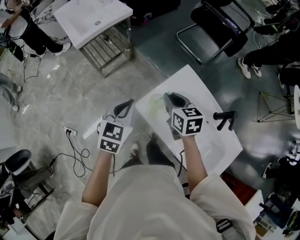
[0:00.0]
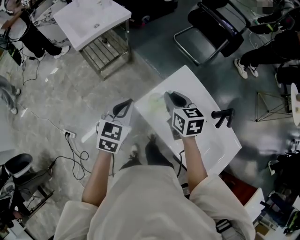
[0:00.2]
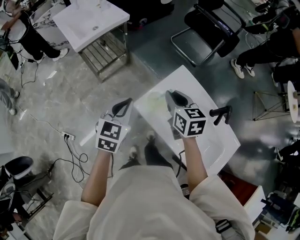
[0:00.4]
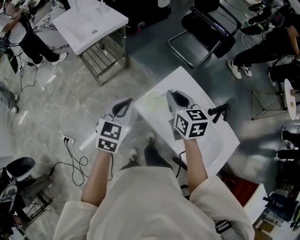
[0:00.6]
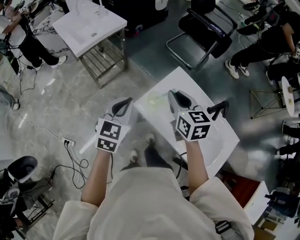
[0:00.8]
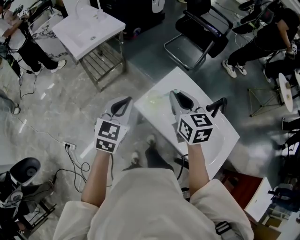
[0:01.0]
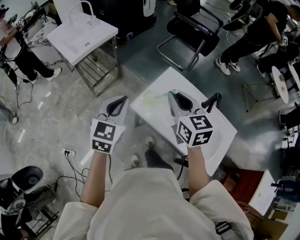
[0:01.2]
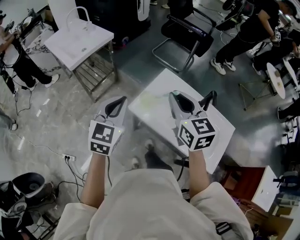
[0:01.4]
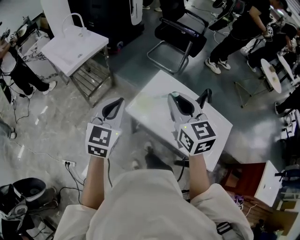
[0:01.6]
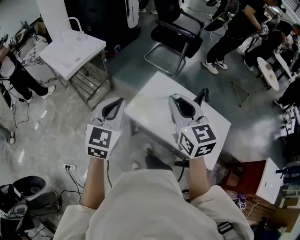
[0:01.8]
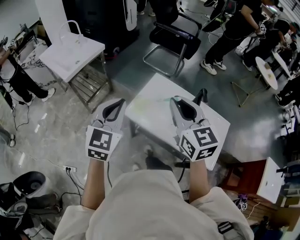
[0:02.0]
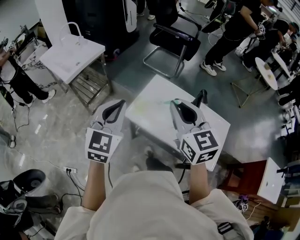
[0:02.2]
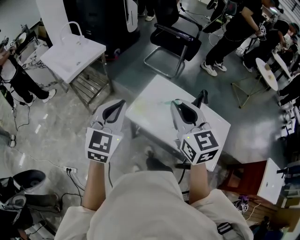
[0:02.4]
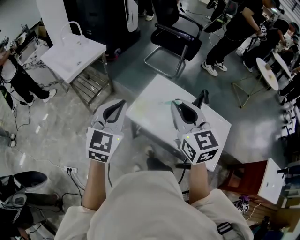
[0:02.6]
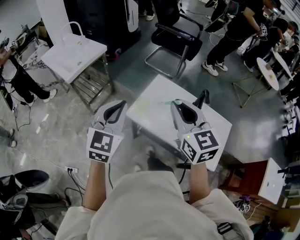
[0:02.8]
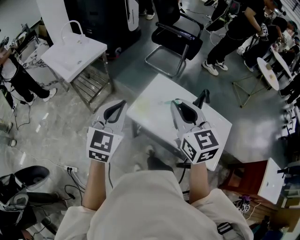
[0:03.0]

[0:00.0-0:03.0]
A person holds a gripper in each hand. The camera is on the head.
0:00.0 to 0:01.6: The two grippers go some 25 cm upward and backward. The right gripper changes its angle by approximately 30 degrees. The left gripper swivels about 20 degrees.
0:01.6 to 0:03.0: The grippers make only small movements.

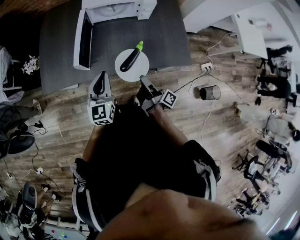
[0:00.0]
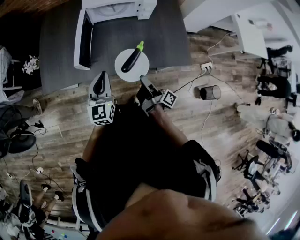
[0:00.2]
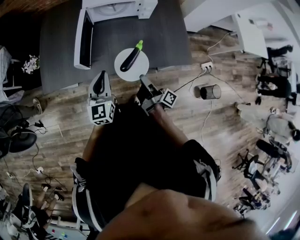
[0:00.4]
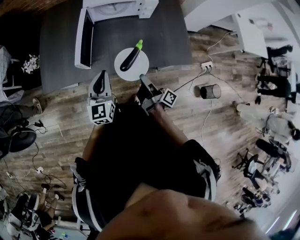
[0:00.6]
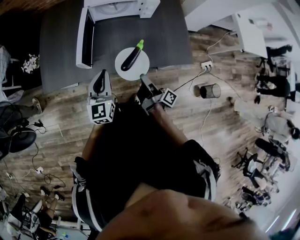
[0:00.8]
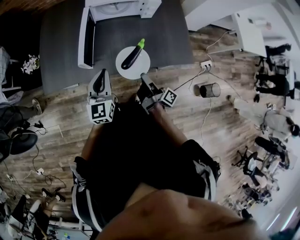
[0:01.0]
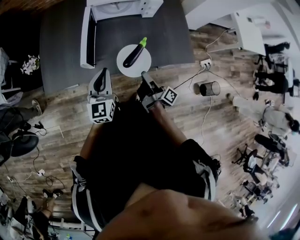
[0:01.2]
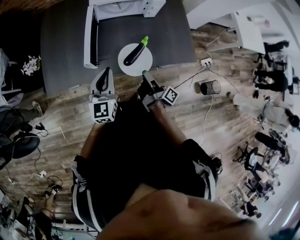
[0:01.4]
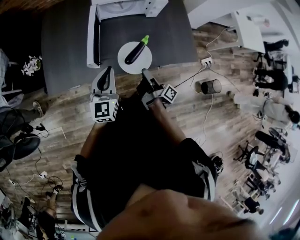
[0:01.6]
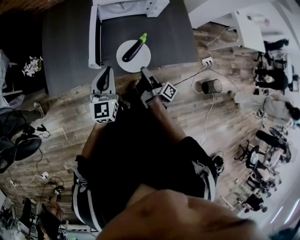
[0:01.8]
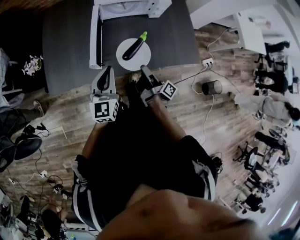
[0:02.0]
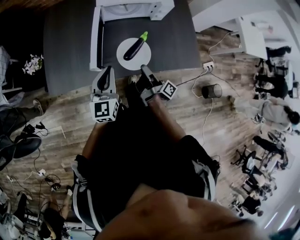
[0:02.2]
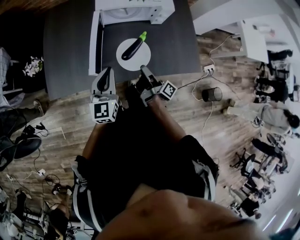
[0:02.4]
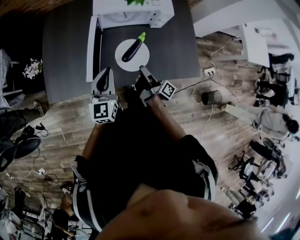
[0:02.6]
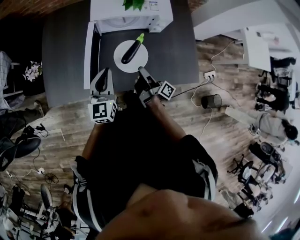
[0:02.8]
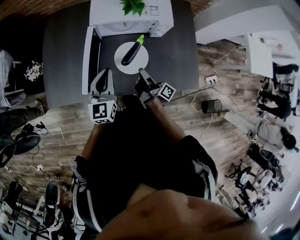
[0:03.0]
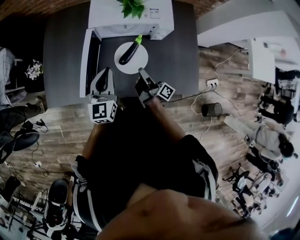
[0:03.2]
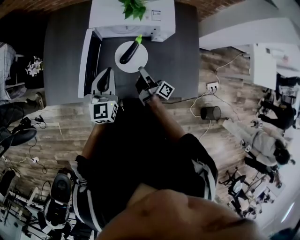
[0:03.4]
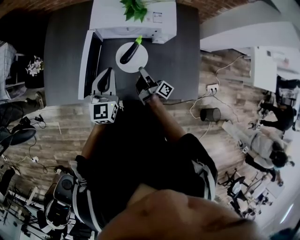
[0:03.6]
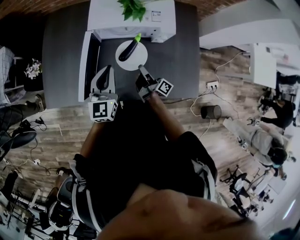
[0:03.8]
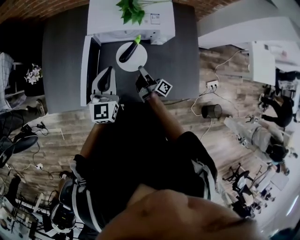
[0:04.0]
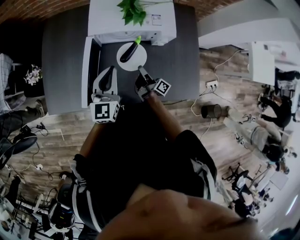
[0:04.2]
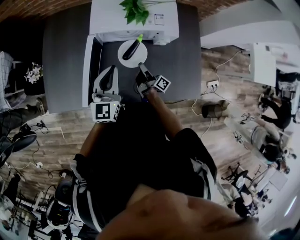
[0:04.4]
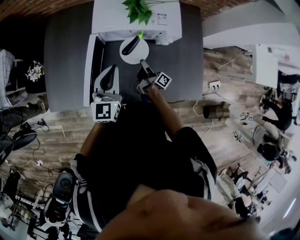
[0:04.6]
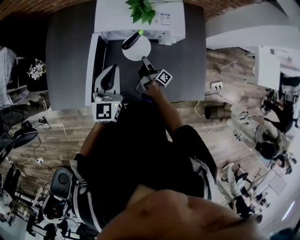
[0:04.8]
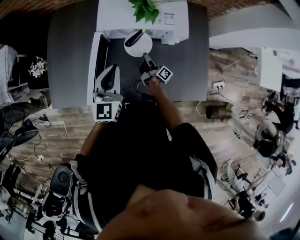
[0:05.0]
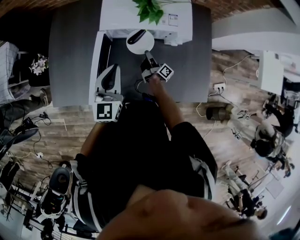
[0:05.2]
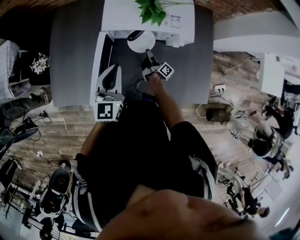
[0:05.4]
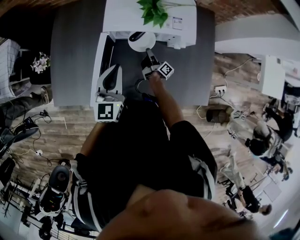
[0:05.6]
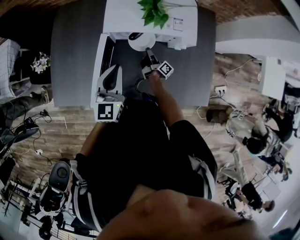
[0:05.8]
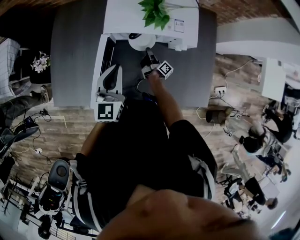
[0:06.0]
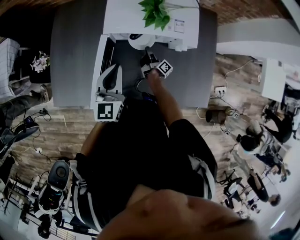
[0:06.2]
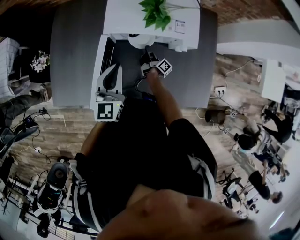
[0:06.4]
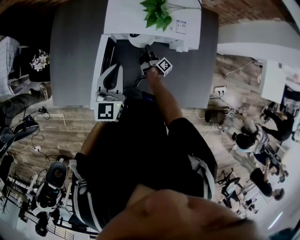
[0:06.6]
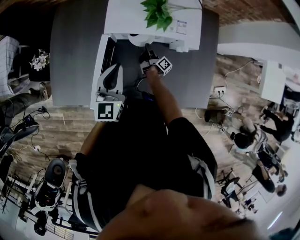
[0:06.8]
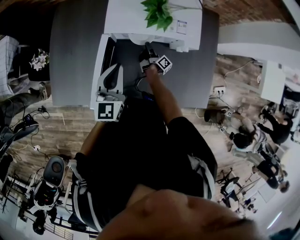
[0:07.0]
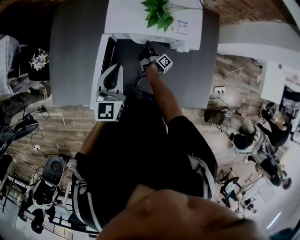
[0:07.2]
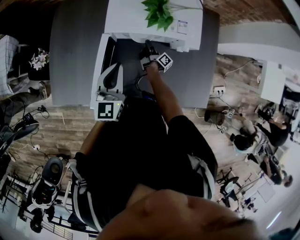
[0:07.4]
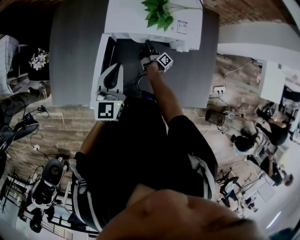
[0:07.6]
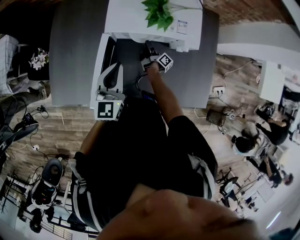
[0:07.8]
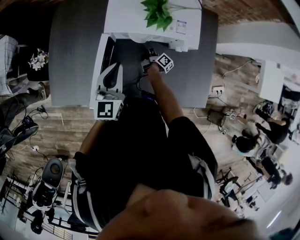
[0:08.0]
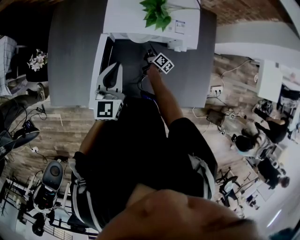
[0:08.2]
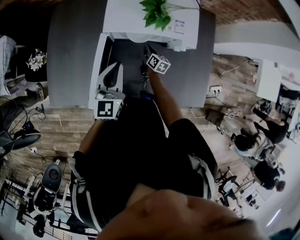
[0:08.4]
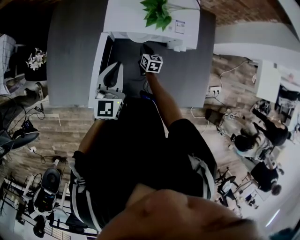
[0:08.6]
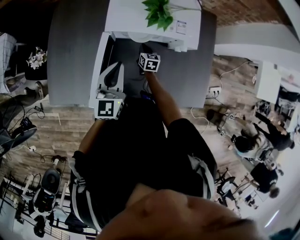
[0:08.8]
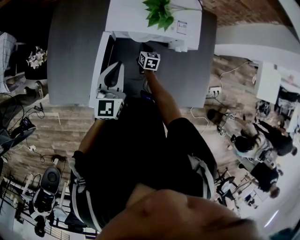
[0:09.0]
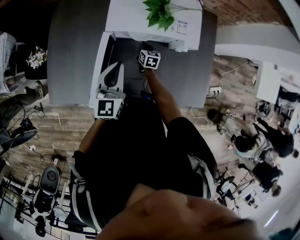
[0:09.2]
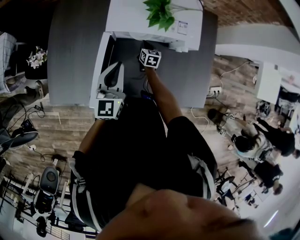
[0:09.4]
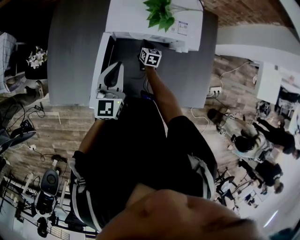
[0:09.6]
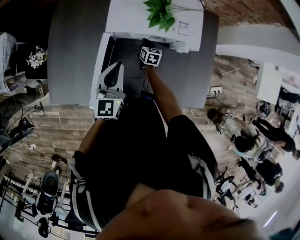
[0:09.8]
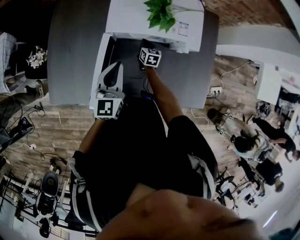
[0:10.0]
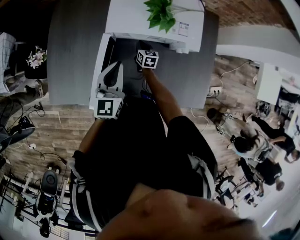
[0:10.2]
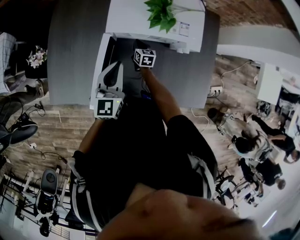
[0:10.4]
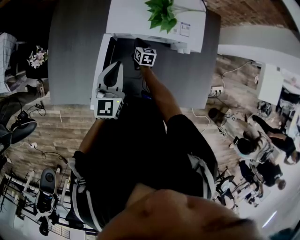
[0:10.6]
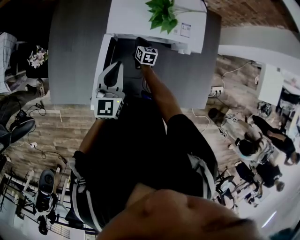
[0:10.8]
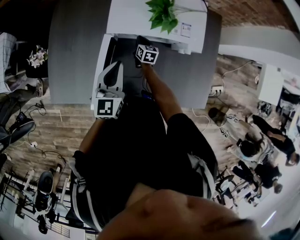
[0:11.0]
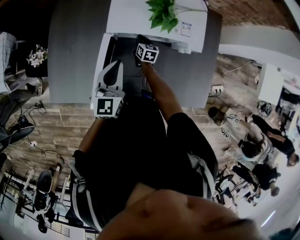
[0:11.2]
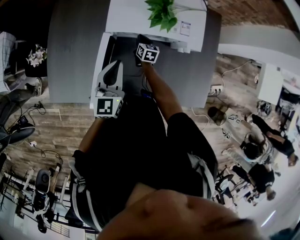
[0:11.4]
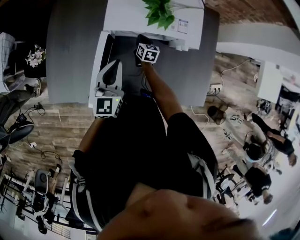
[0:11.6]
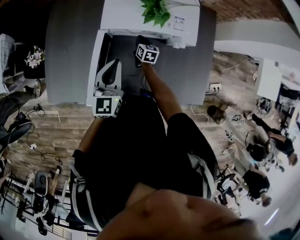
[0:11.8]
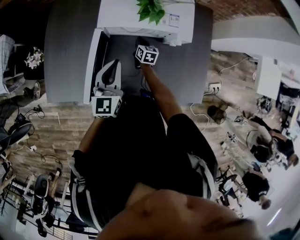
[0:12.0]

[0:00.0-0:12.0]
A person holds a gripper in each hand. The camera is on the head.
0:00.0 to 0:01.6: The two grippers go about 5 cm to the left.
0:01.6 to 0:03.0: Both grippers move forward, some 15 cm.
0:03.0 to 0:04.4: The right gripper is displaced downward and forward by roughly 15 cm. The left gripper is displaced forward by about 5 cm.
0:04.4 to 0:06.0: The right gripper heads forward and downward, covering about 15 cm. Meanwhile the left gripper shifts by approximately 5 cm.
0:06.0 to 0:07.6: There are only small adjustments of the grippers.
0:07.6 to 0:09.0: The right gripper rolls counterclockwise, seen from behind, by some 70 degrees.
0:09.0 to 0:10.4: The grippers move only a little.
0:10.4 to 0:12.0: The right gripper travels to the right by some 5 cm.

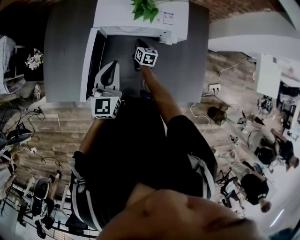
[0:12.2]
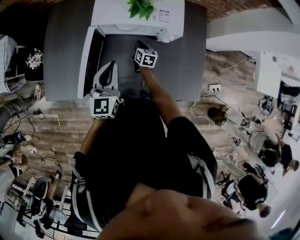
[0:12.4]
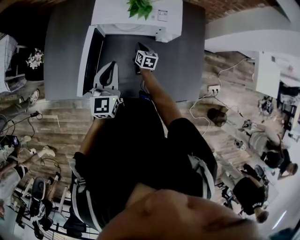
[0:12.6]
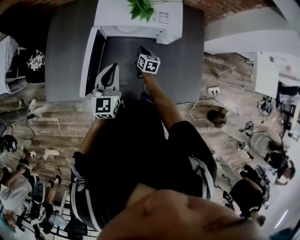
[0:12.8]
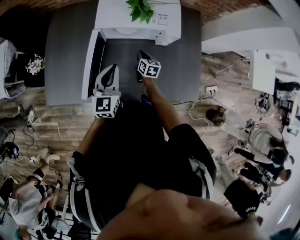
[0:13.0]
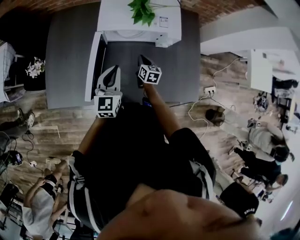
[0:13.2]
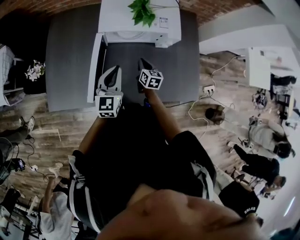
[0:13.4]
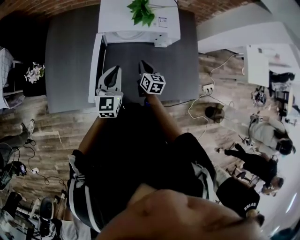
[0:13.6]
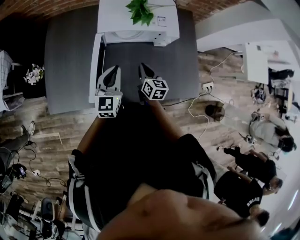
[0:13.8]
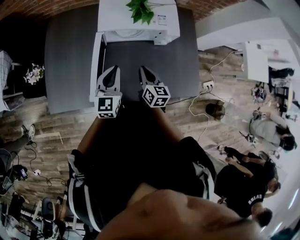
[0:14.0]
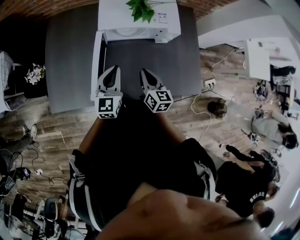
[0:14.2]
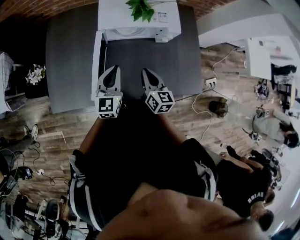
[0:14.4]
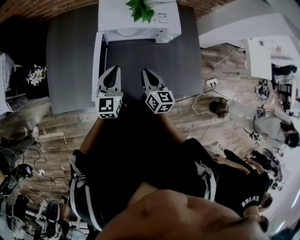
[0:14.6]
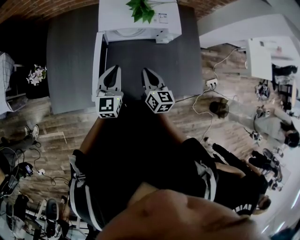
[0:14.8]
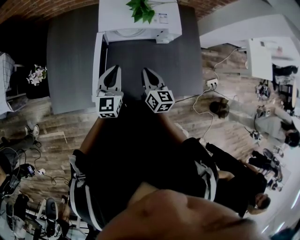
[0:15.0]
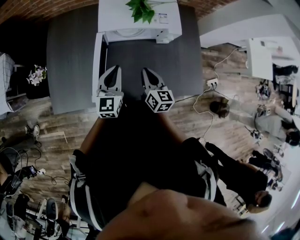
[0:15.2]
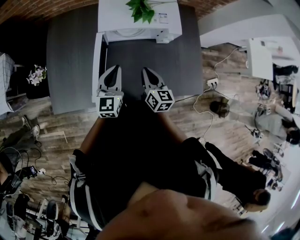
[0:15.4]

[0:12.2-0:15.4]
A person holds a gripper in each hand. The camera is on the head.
0:12.2 to 0:13.8: The right gripper goes some 25 cm upward and backward.
0:13.8 to 0:15.4: The right gripper moves upward, roughly 5 cm.

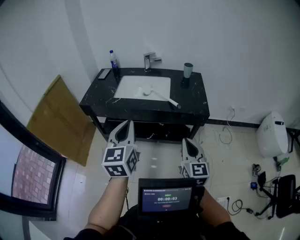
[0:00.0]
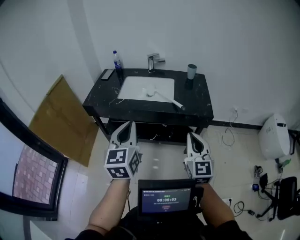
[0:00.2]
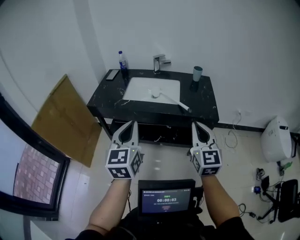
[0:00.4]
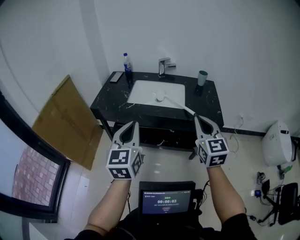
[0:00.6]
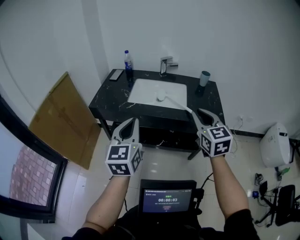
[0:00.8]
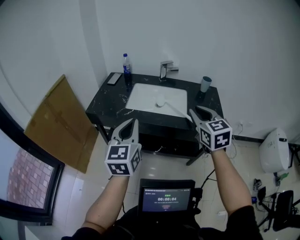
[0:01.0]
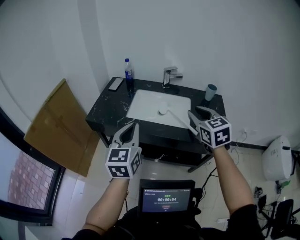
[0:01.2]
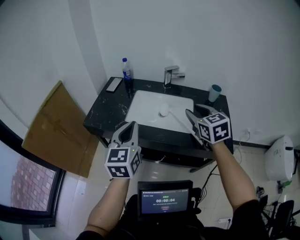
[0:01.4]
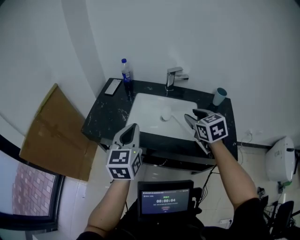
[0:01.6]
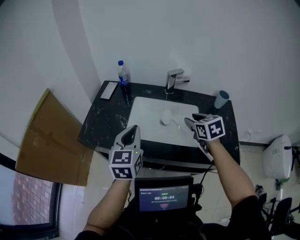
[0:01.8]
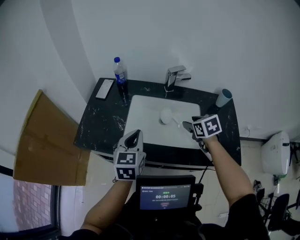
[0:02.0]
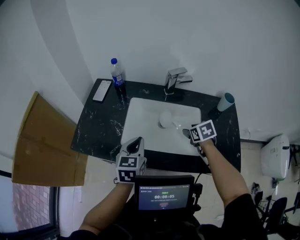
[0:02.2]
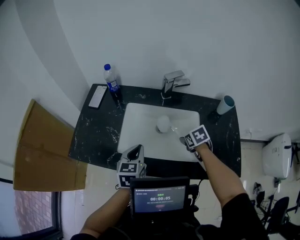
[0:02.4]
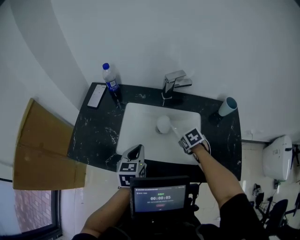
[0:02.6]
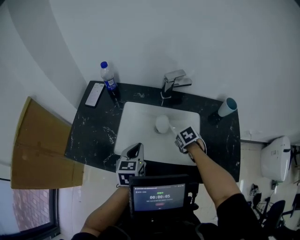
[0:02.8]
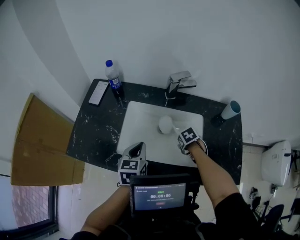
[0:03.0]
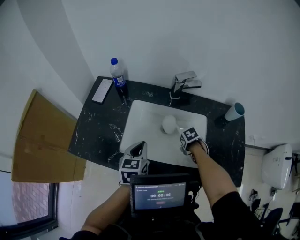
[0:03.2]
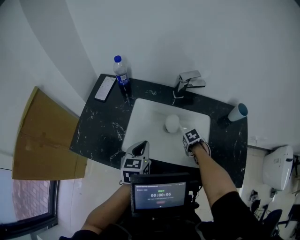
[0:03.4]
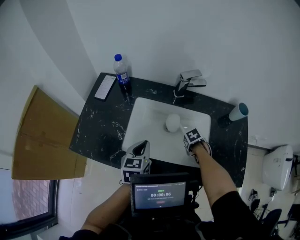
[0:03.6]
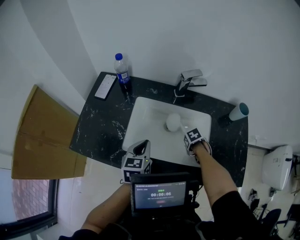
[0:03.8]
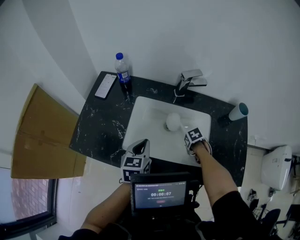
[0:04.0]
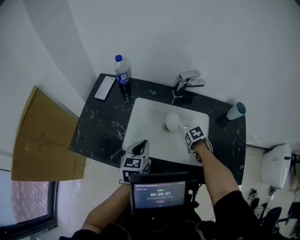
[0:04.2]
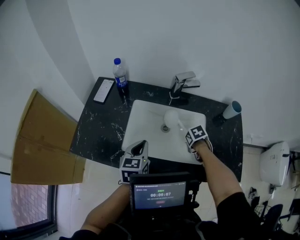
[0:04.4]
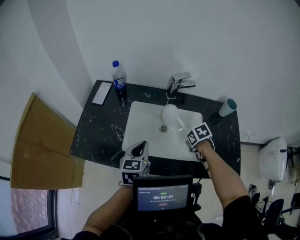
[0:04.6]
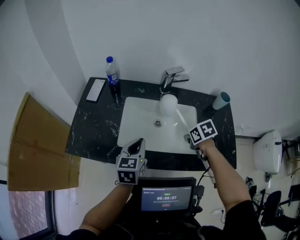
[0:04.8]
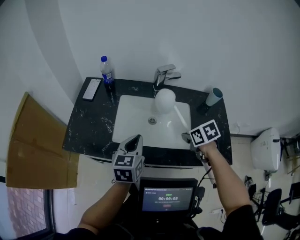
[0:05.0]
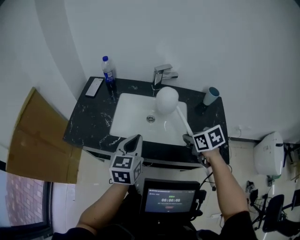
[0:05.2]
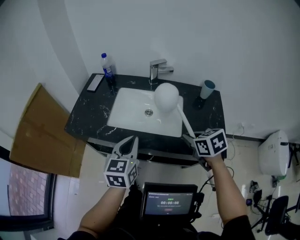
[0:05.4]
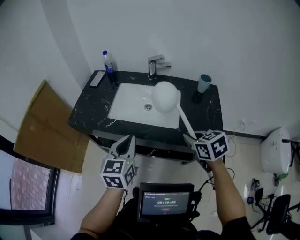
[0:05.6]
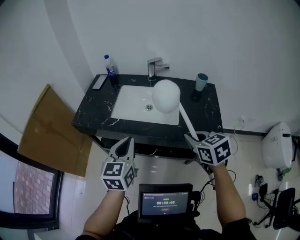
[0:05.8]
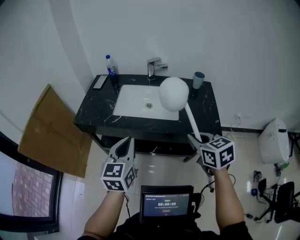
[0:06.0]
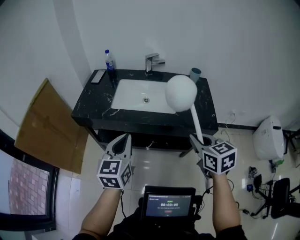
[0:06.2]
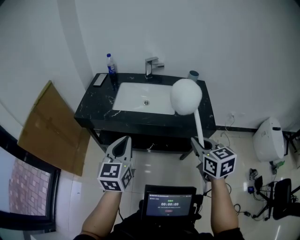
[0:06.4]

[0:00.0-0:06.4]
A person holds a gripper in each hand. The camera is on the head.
0:00.0 to 0:01.6: Both grippers travel together forward, about 40 cm. The right gripper rotates approximately 30 degrees, and opens.
0:01.6 to 0:03.2: The right gripper is displaced downward by about 30 cm, and tilts its fingers approximately 60 degrees downward. The left gripper changes place by roughly 30 cm, and turns by some 20 degrees.
0:03.2 to 0:04.8: The right gripper is displaced upward by some 15 cm, swivels about 20 degrees, and closes its fingers. The left gripper shifts by about 5 cm.
0:04.8 to 0:06.4: Both grippers are carried backward, some 50 cm. The right gripper travels upward by about 20 cm, and tips its fingers upward by approximately 40 degrees.
